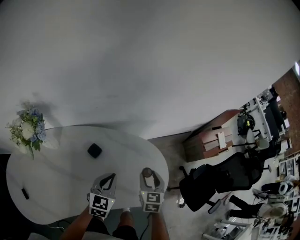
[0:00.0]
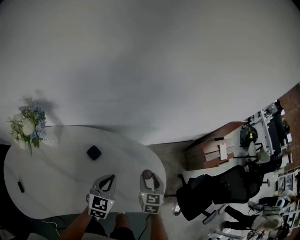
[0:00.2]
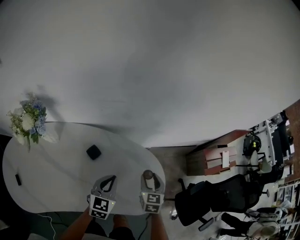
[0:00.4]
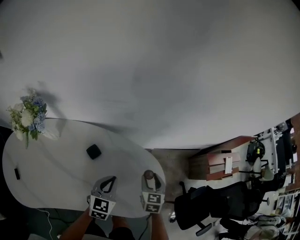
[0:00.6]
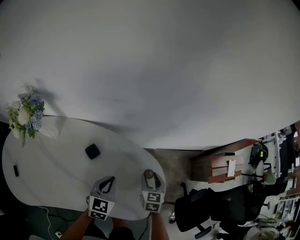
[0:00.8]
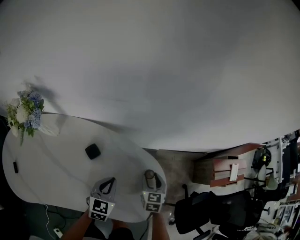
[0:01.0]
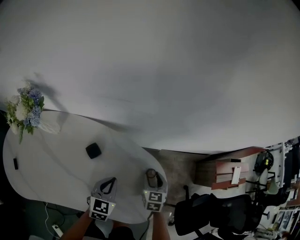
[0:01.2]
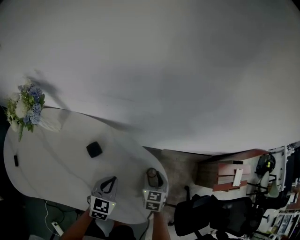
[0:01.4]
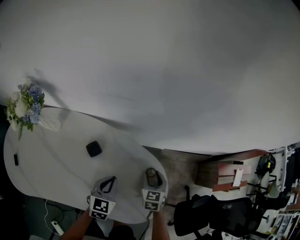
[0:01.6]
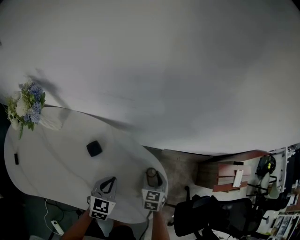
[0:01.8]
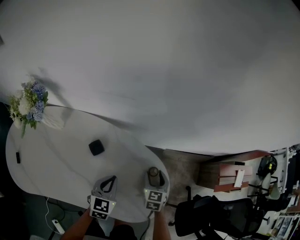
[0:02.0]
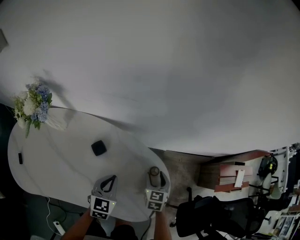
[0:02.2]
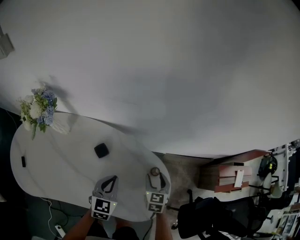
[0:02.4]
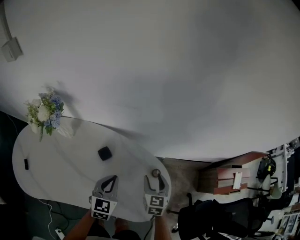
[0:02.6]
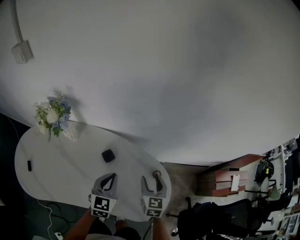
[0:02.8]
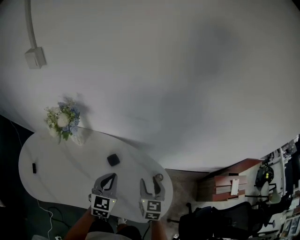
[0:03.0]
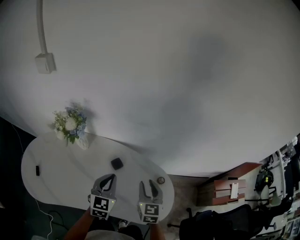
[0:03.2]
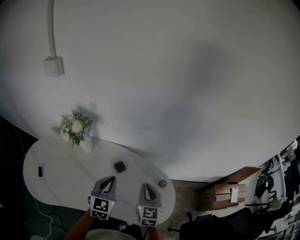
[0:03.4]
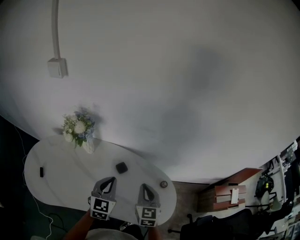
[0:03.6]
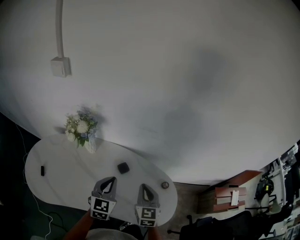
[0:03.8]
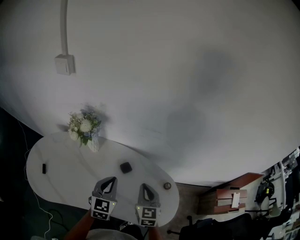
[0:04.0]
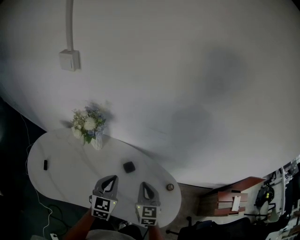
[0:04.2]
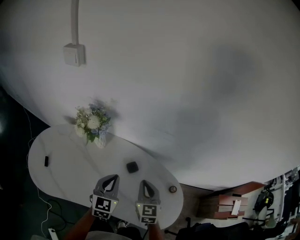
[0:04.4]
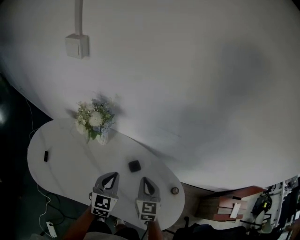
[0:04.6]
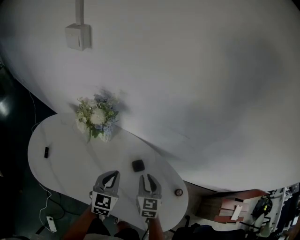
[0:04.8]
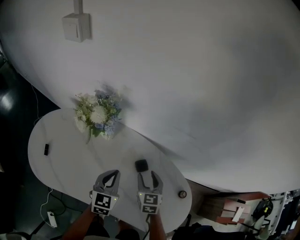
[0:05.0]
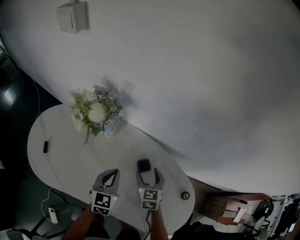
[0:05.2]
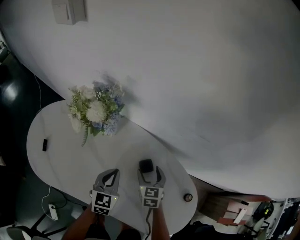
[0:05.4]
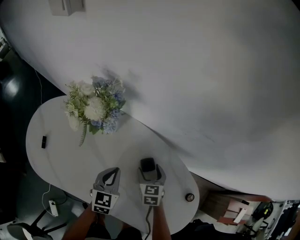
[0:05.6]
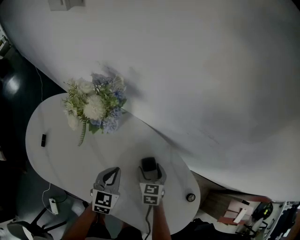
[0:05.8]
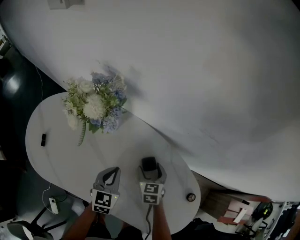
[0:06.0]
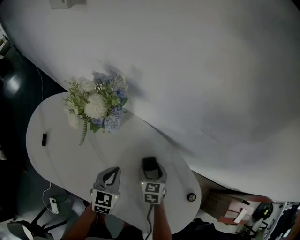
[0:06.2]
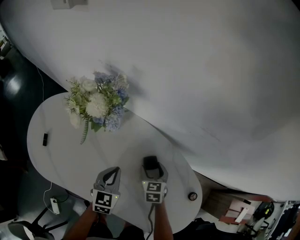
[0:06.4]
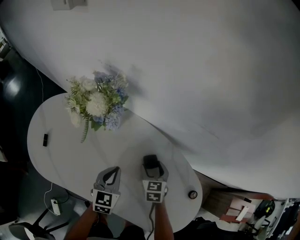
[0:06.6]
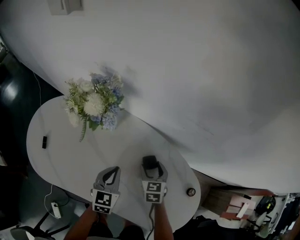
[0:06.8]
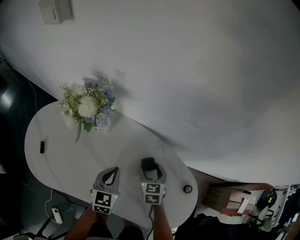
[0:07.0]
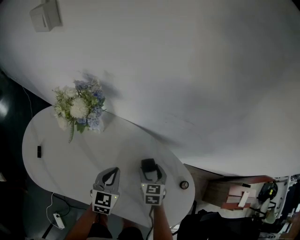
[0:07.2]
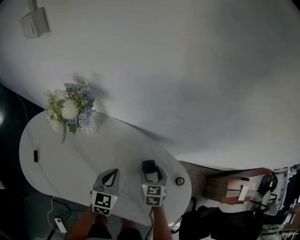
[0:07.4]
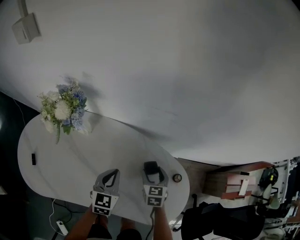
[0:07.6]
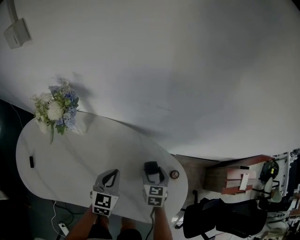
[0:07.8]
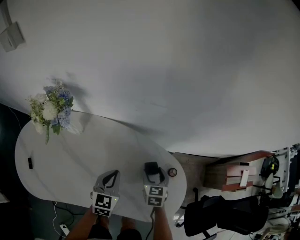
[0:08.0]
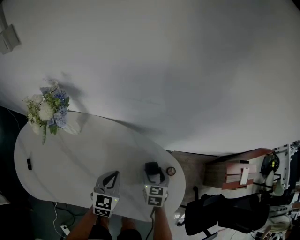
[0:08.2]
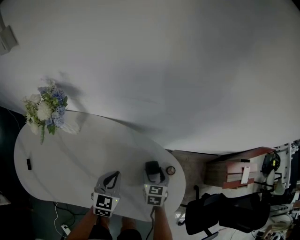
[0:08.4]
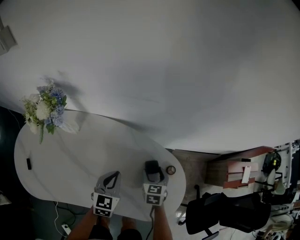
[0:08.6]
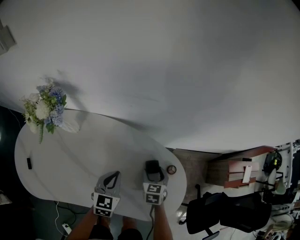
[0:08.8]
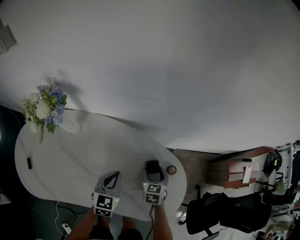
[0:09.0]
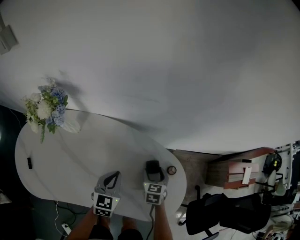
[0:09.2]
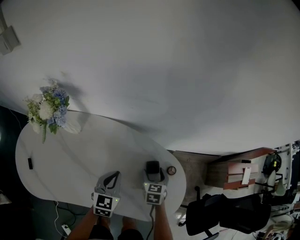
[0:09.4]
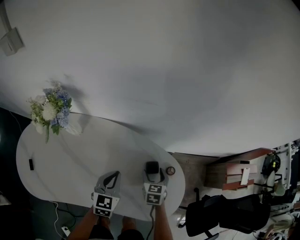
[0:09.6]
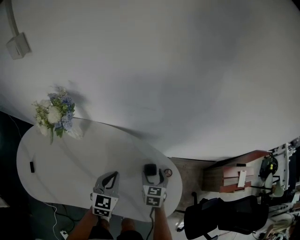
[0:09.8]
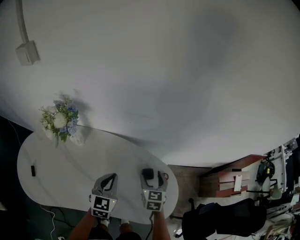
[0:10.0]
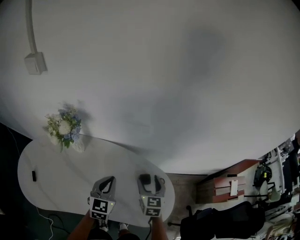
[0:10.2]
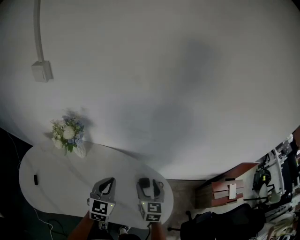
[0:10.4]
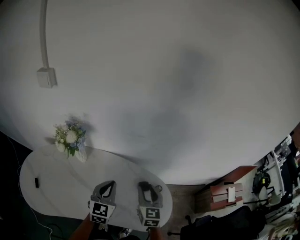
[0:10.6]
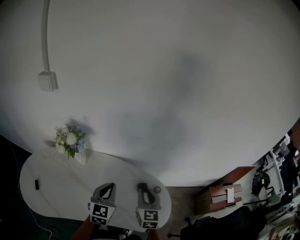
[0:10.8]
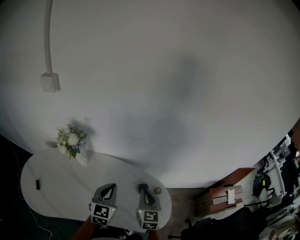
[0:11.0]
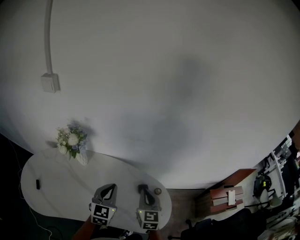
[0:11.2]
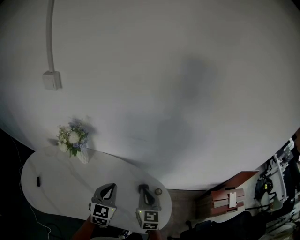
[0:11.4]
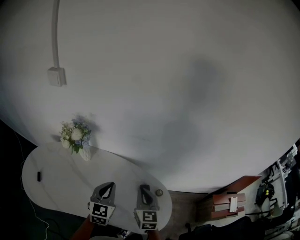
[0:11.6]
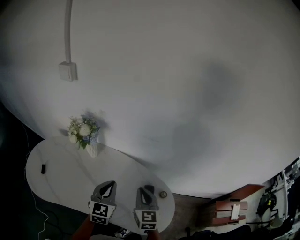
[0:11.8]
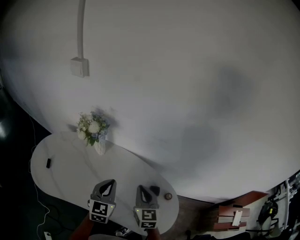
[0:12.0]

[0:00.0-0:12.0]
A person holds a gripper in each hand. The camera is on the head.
0:00.0 to 0:01.6: The right gripper travels forward and downward by some 15 cm, and swivels approximately 20 degrees. Meanwhile the left gripper goes roughly 10 cm downward, and rotates some 20 degrees.
0:01.6 to 0:03.0: Both grippers travel together upward and to the left, roughly 20 cm.
0:03.0 to 0:04.4: Both grippers move to the left, roughly 10 cm. The right gripper closes up.
0:04.4 to 0:06.0: The left gripper is displaced downward by some 15 cm, while the right gripper shifts approximately 25 cm downward and forward, turns by roughly 30 degrees, and opens its fingers.
0:06.0 to 0:07.6: The left gripper is displaced to the right by about 10 cm; the right gripper goes roughly 15 cm to the right and backward.
0:07.6 to 0:09.0: The grippers both shift to the right by approximately 5 cm.
0:09.0 to 0:10.4: The grippers both shift upward by approximately 20 cm. The right gripper swivels some 30 degrees.
0:10.4 to 0:12.0: The right gripper shifts some 10 cm to the left, and closes its fingers. The left gripper heads to the left, covering roughly 5 cm.

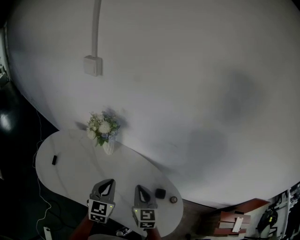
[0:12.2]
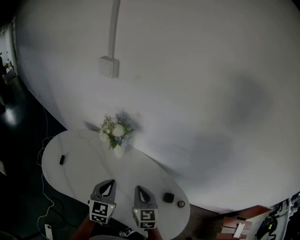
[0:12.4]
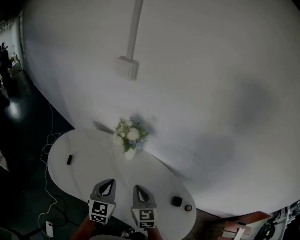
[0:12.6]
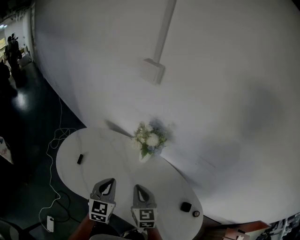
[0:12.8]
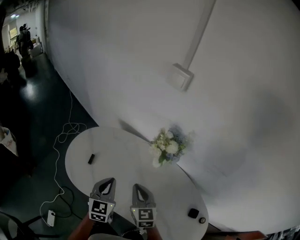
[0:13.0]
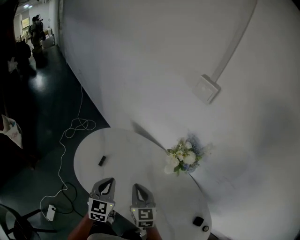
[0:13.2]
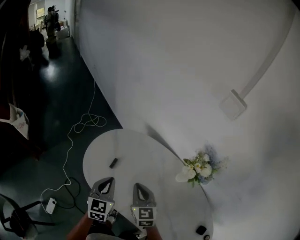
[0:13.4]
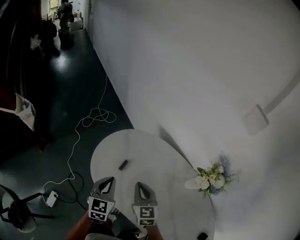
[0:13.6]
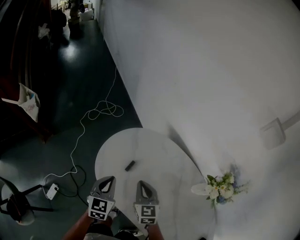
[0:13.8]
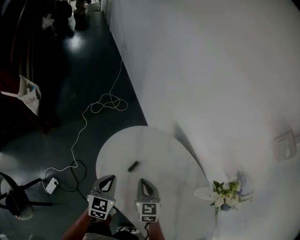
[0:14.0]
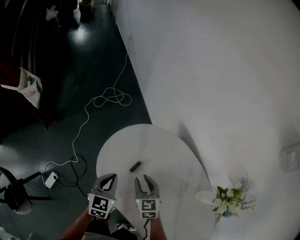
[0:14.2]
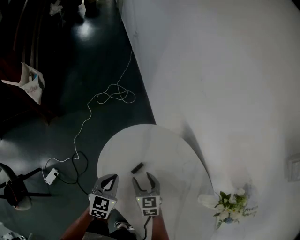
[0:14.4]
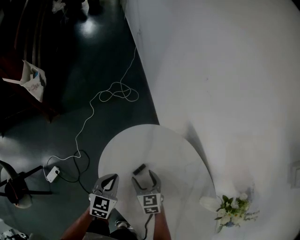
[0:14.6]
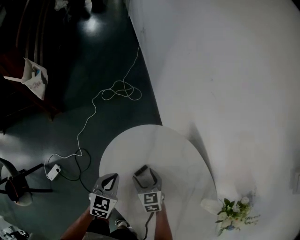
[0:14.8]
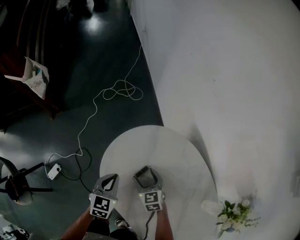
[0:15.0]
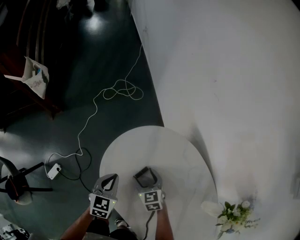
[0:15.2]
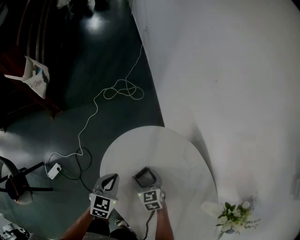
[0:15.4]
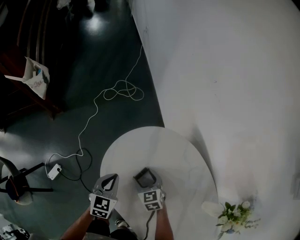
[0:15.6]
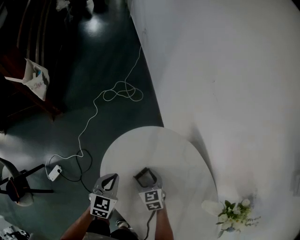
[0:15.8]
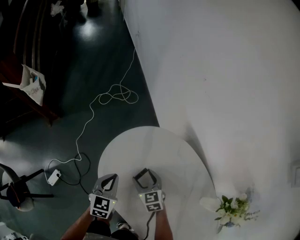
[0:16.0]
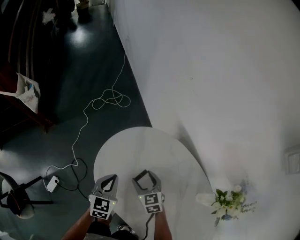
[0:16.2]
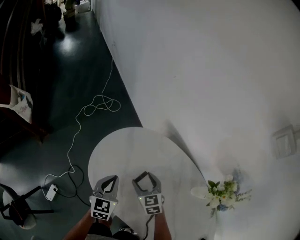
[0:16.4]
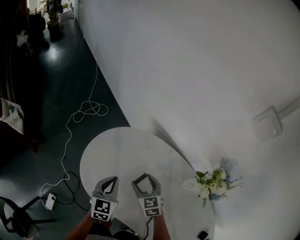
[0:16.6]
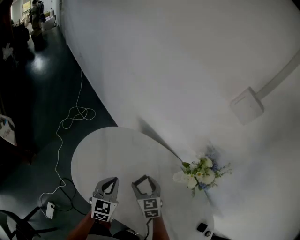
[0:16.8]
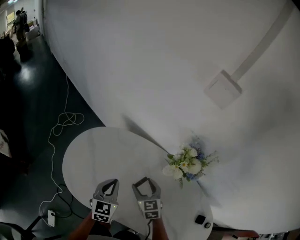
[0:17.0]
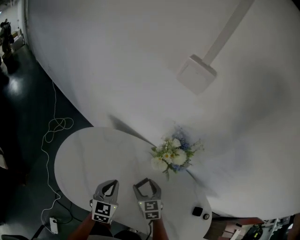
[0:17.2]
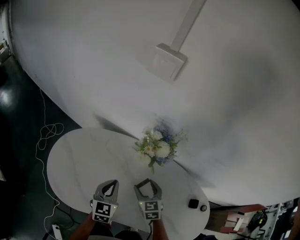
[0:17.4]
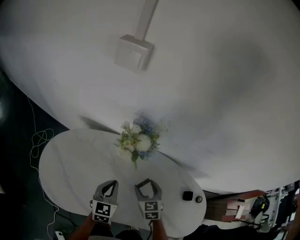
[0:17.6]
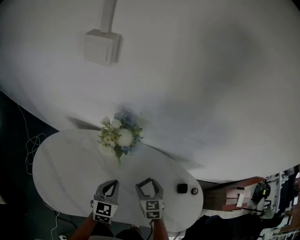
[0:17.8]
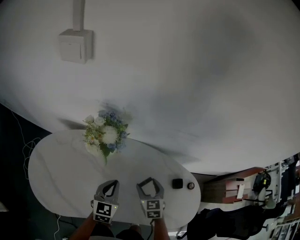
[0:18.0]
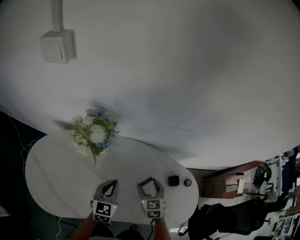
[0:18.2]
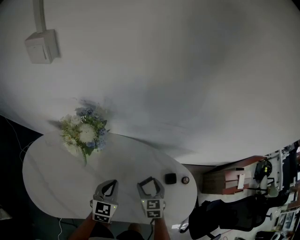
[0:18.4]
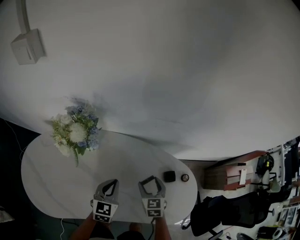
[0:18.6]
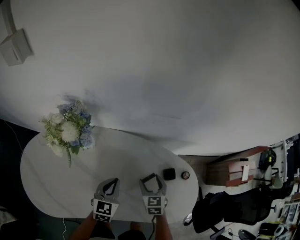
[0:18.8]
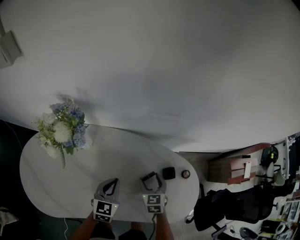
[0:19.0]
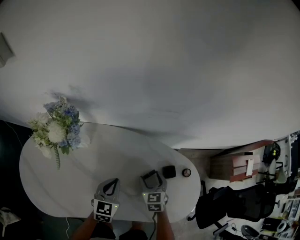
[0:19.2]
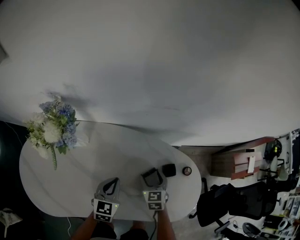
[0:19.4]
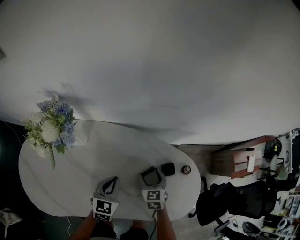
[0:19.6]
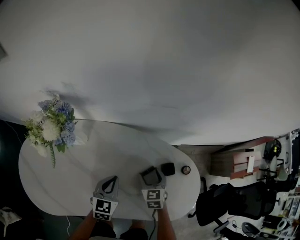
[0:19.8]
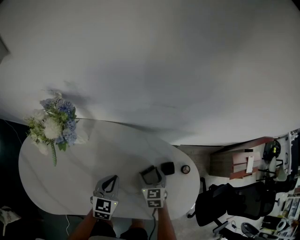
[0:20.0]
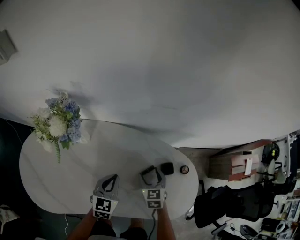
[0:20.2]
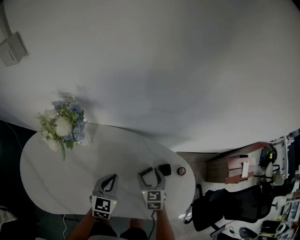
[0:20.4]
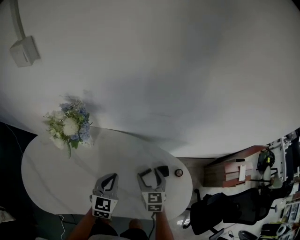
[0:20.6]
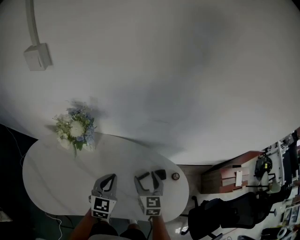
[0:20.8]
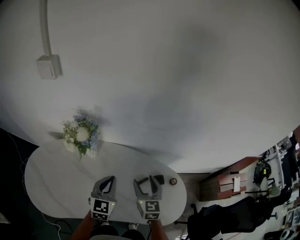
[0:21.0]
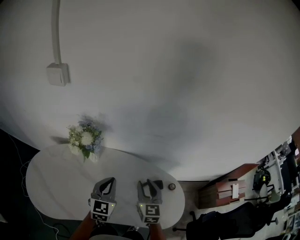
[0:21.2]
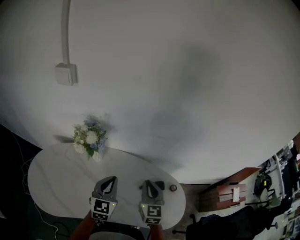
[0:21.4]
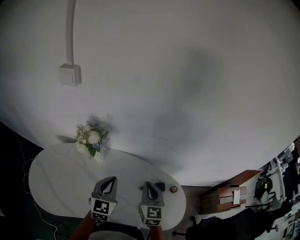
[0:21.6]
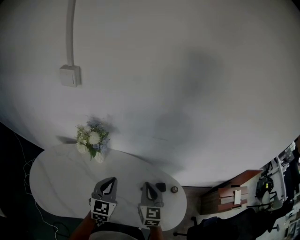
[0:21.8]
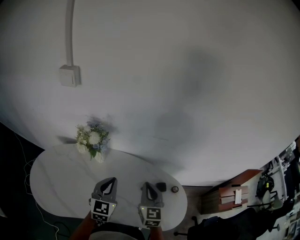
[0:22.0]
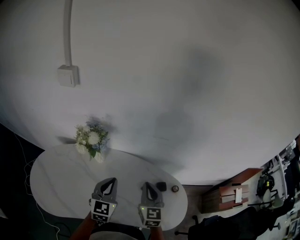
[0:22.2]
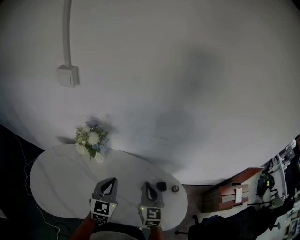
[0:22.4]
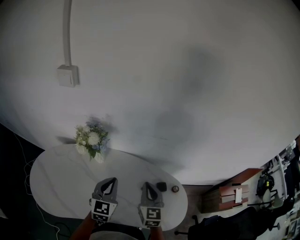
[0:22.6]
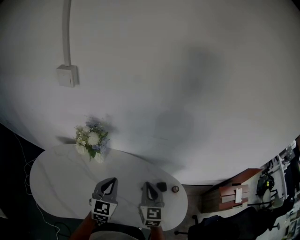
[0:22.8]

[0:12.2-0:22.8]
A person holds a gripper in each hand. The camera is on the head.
0:12.2 to 0:13.8: The pair of grippers is taken about 50 cm. The left gripper changes its angle by roughly 40 degrees. Meanwhile the right gripper rotates some 40 degrees.
0:13.8 to 0:15.2: The left gripper shifts about 10 cm downward. Meanwhile the right gripper shifts some 15 cm downward and forward, turns by about 30 degrees, and opens its fingers.
0:15.2 to 0:16.8: The right gripper changes place by approximately 20 cm, and changes its angle by some 30 degrees, while the left gripper shifts by about 20 cm, and rotates approximately 30 degrees.
0:16.8 to 0:18.2: The left gripper ends up approximately 35 cm from where it was, and rotates some 40 degrees. The right gripper ends up about 40 cm from where it was, and rotates approximately 50 degrees.
0:18.2 to 0:19.8: The left gripper heads to the right and downward, covering some 10 cm, while the right gripper moves downward and to the right, roughly 15 cm.
0:19.8 to 0:21.2: The grippers both shift upward by about 20 cm. The left gripper swivels some 20 degrees; the right gripper changes its angle by about 30 degrees, and closes its fingers.
0:21.2 to 0:22.8: The right gripper closes up.

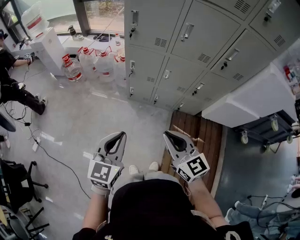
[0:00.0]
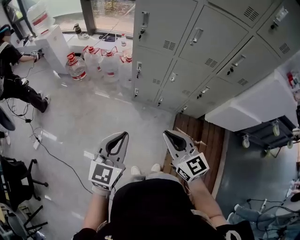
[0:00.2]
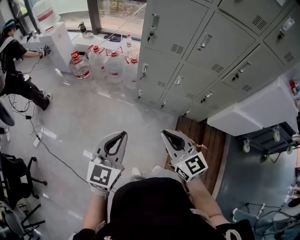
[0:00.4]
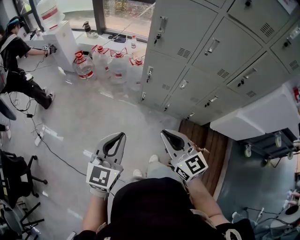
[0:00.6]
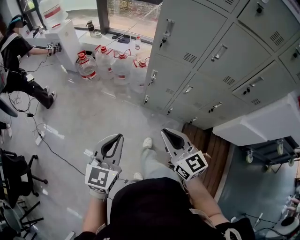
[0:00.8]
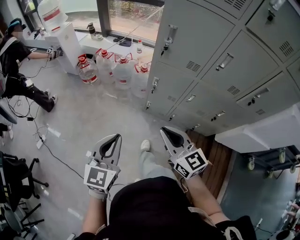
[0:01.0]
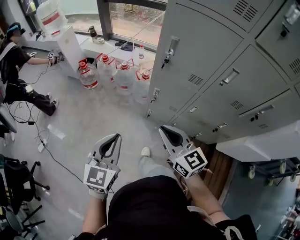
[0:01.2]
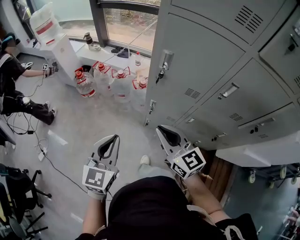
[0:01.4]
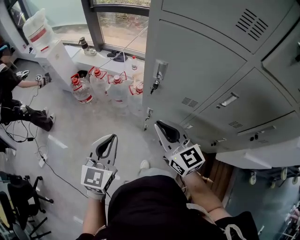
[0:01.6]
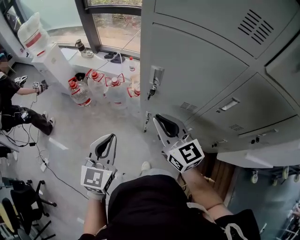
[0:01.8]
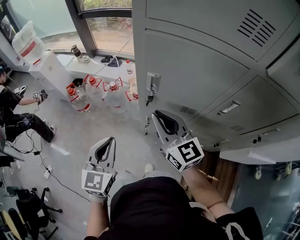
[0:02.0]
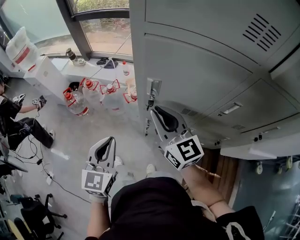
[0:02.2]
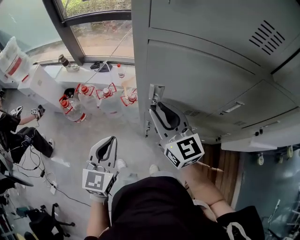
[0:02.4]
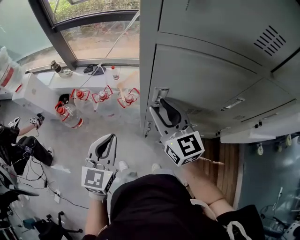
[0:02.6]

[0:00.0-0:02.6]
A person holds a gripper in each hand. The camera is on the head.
0:00.0 to 0:01.2: The left gripper moves forward and to the left, some 25 cm. Meanwhile the right gripper shifts about 30 cm forward.
0:01.2 to 0:02.6: The two grippers go some 30 cm forward. The right gripper changes its angle by some 30 degrees, and opens its fingers.
